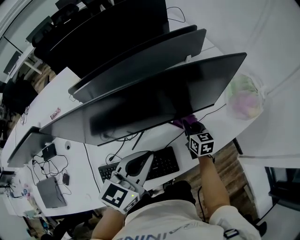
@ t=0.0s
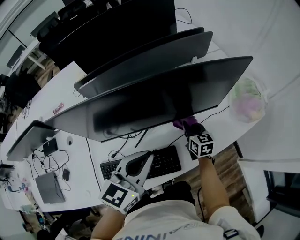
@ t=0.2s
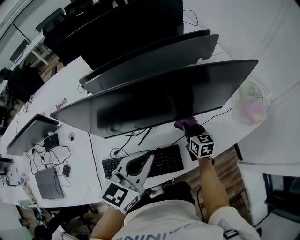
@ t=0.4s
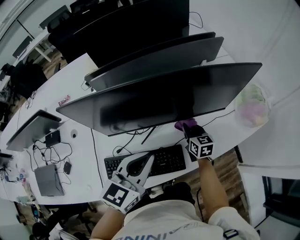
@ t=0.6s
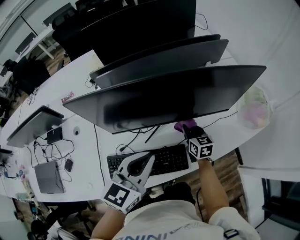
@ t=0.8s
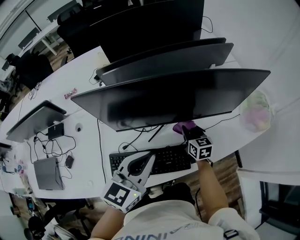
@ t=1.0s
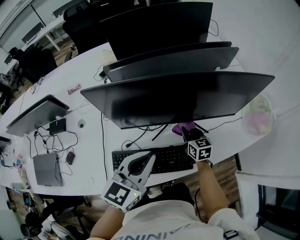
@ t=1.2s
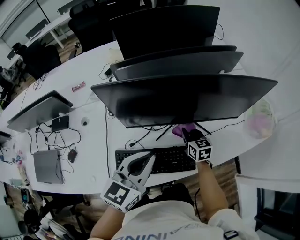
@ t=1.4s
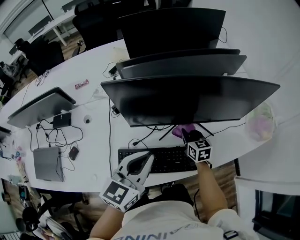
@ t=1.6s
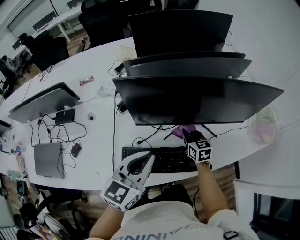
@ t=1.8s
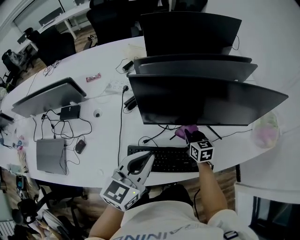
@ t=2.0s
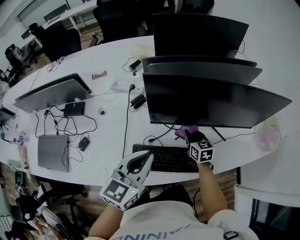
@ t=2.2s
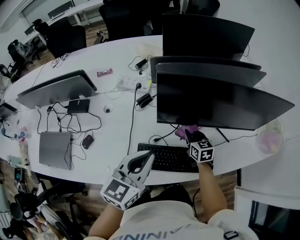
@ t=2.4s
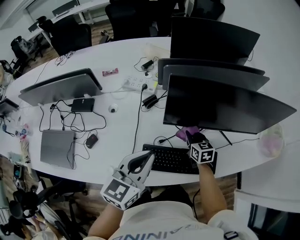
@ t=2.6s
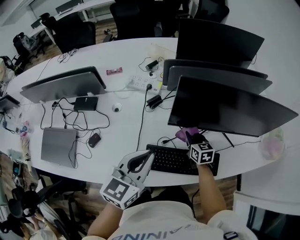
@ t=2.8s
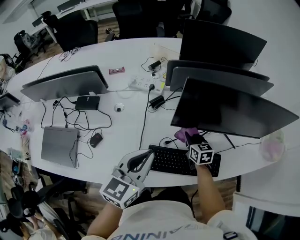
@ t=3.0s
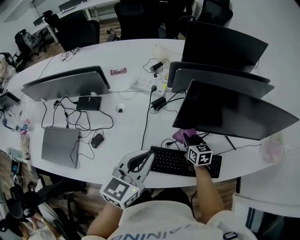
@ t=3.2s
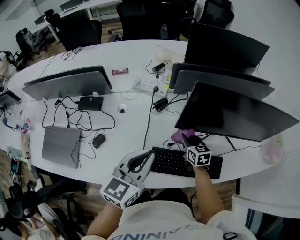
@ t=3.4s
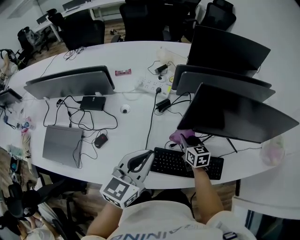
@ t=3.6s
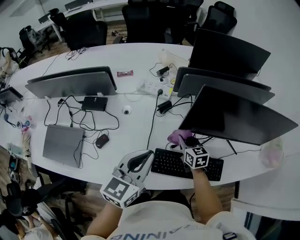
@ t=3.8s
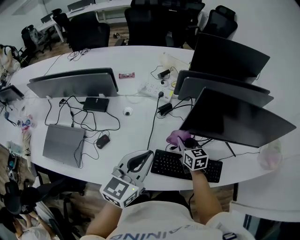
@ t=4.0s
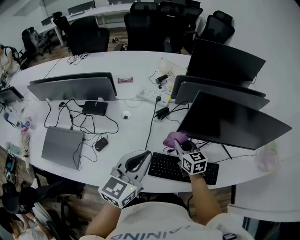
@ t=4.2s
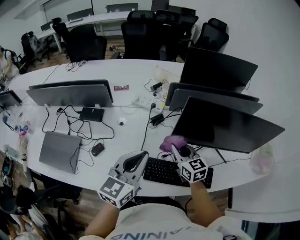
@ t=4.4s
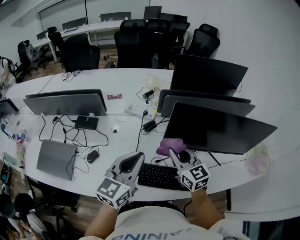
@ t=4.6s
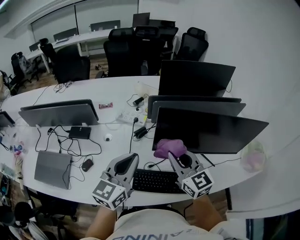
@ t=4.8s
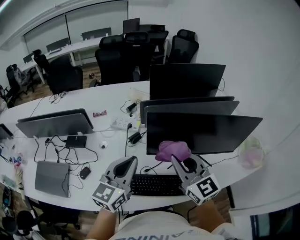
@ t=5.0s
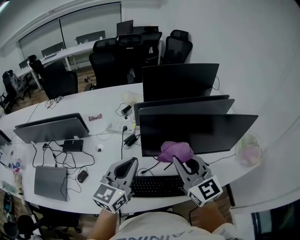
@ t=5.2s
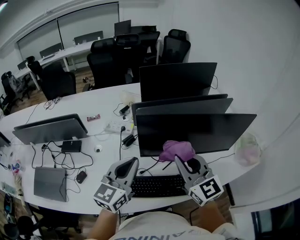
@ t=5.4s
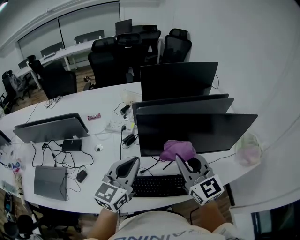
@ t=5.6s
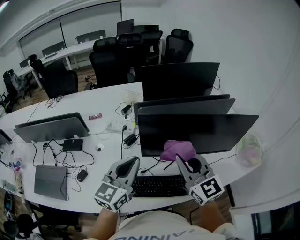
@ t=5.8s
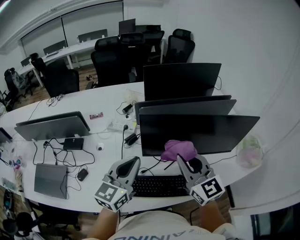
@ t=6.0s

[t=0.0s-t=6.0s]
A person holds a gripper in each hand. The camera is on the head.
t=0.0s to t=1.6s: The left gripper shifts some 15 cm to the left and backward. The right gripper moves to the left, about 15 cm.
t=1.6s to t=3.0s: The grippers both shift to the left by roughly 15 cm.
t=3.0s to t=4.4s: The left gripper changes place by approximately 5 cm. Meanwhile the right gripper moves upward and to the left, some 15 cm.
t=4.4s to t=6.0s: The right gripper is displaced upward and to the right by approximately 20 cm, and turns by some 20 degrees. Meanwhile the left gripper travels to the right by roughly 10 cm.

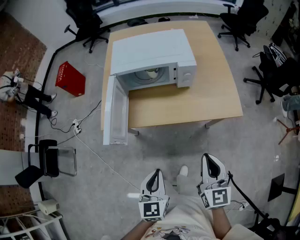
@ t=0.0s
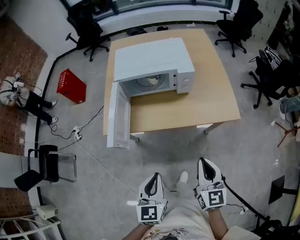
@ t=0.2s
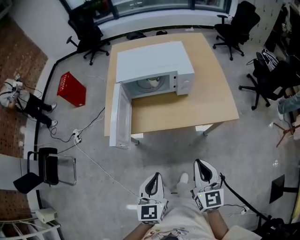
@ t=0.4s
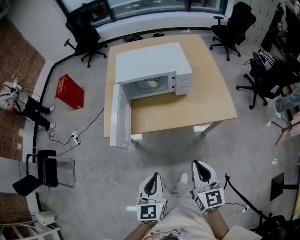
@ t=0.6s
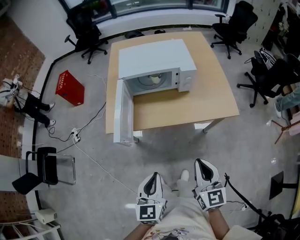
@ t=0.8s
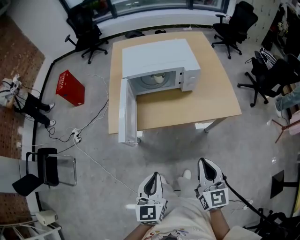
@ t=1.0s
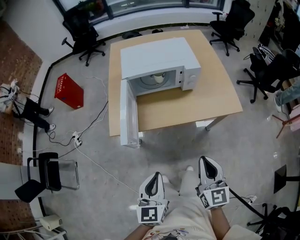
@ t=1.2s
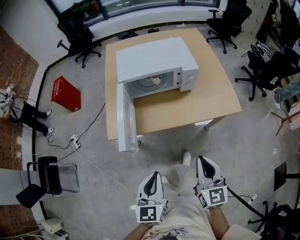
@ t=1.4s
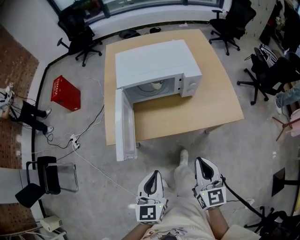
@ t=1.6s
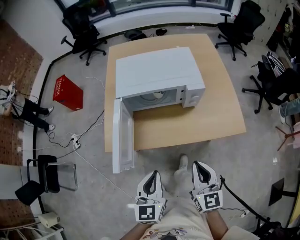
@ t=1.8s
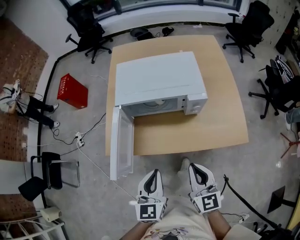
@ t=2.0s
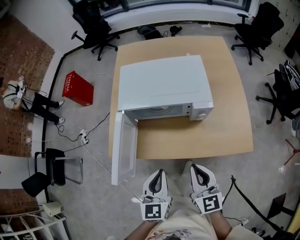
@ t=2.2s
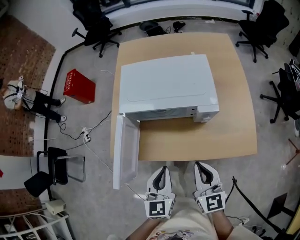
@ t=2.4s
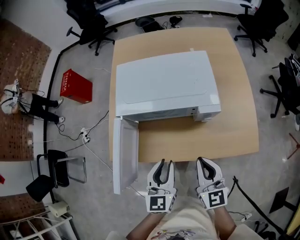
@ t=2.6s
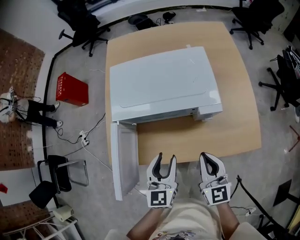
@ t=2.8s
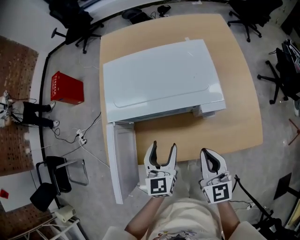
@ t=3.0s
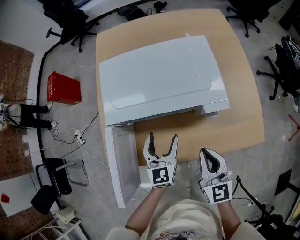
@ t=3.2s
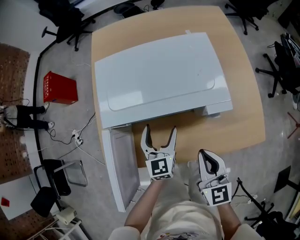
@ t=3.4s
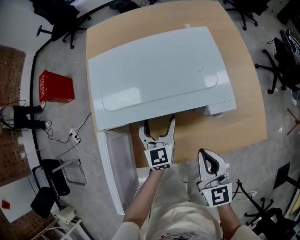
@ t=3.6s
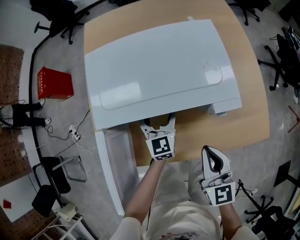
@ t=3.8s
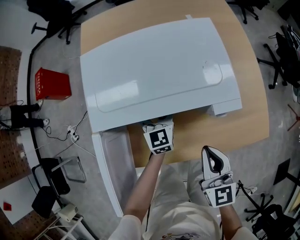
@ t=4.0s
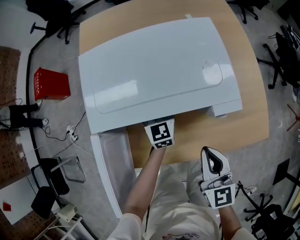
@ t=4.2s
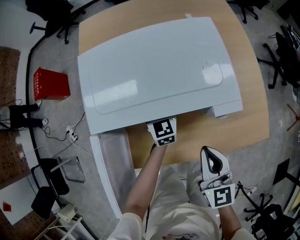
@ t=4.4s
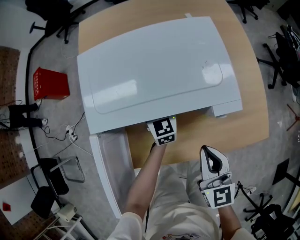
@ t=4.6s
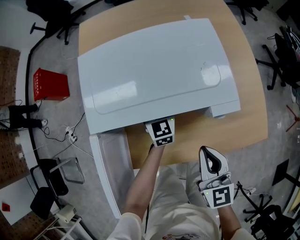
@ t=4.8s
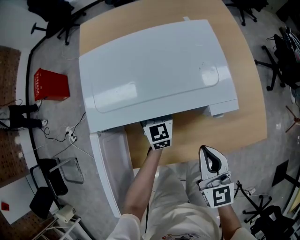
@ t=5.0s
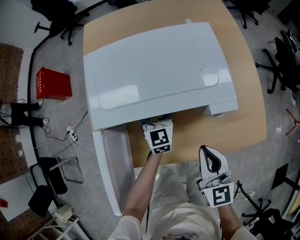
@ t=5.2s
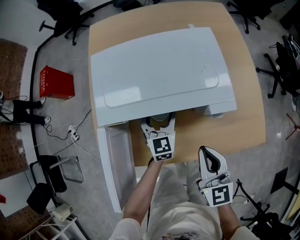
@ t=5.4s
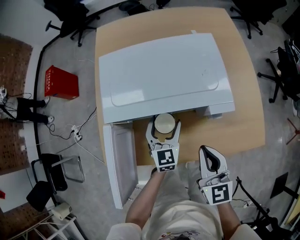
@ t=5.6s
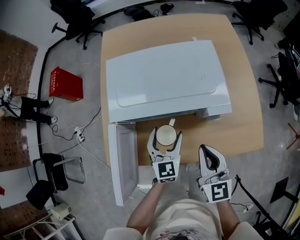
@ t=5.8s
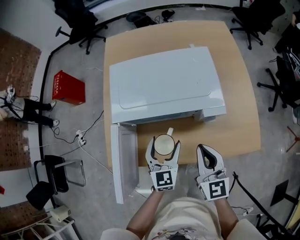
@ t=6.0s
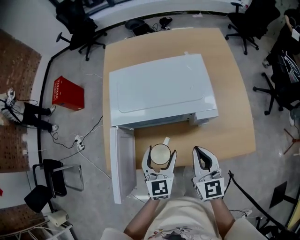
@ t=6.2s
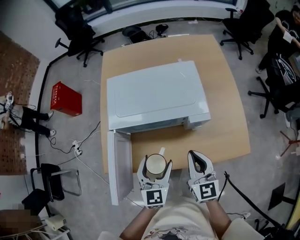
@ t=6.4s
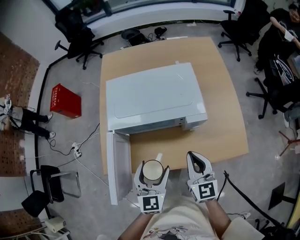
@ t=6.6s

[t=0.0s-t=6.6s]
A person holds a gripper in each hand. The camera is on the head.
t=0.0s to t=1.6s: Both grippers move to the left, about 10 cm.
t=1.6s to t=3.2s: Both grippers move forward, some 30 cm. The left gripper opens.
t=3.2s to t=5.0s: The left gripper goes about 15 cm forward and downward.
t=5.0s to t=6.6s: The left gripper moves backward and upward, approximately 30 cm; the right gripper heads upward, covering roughly 5 cm.

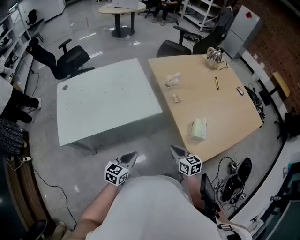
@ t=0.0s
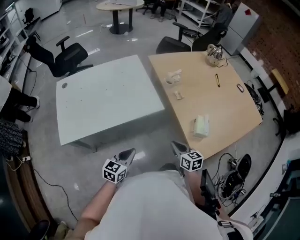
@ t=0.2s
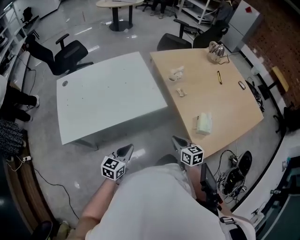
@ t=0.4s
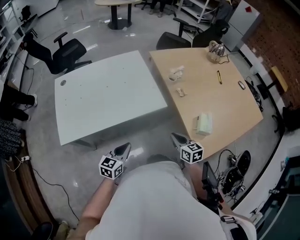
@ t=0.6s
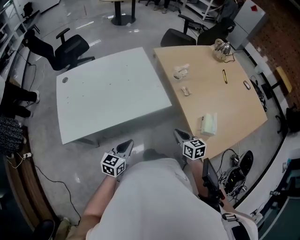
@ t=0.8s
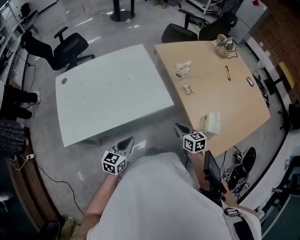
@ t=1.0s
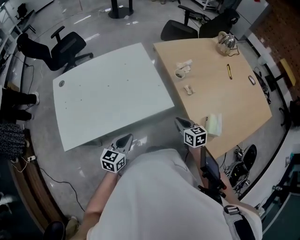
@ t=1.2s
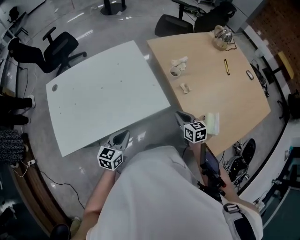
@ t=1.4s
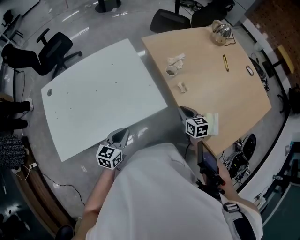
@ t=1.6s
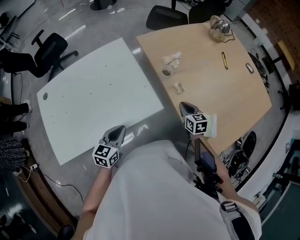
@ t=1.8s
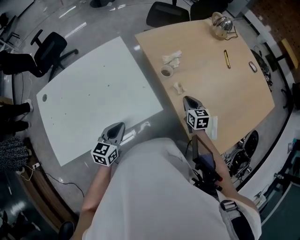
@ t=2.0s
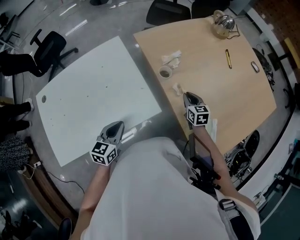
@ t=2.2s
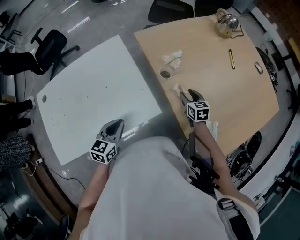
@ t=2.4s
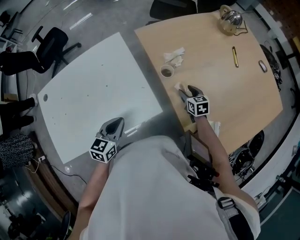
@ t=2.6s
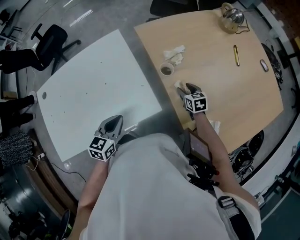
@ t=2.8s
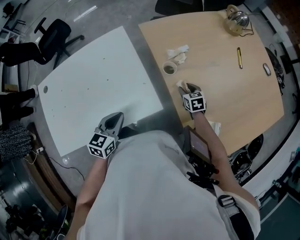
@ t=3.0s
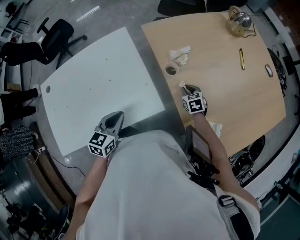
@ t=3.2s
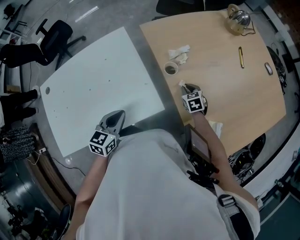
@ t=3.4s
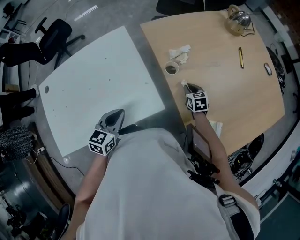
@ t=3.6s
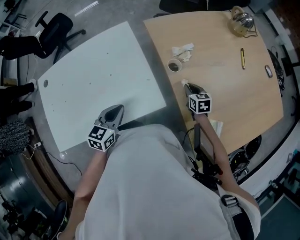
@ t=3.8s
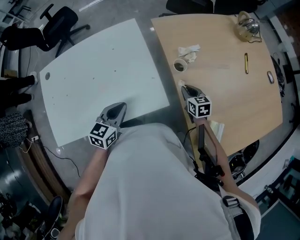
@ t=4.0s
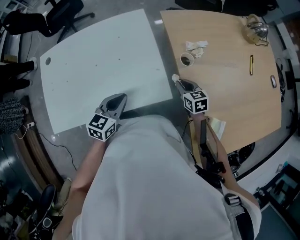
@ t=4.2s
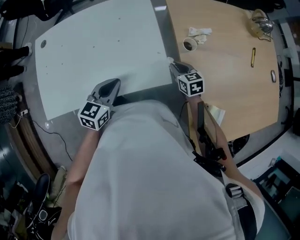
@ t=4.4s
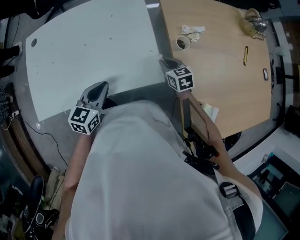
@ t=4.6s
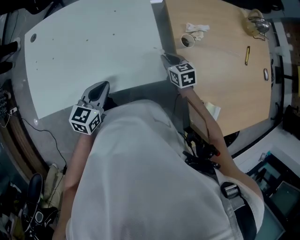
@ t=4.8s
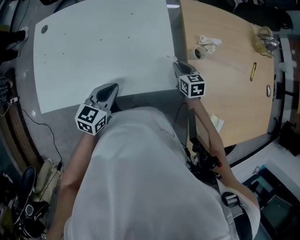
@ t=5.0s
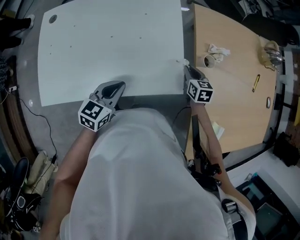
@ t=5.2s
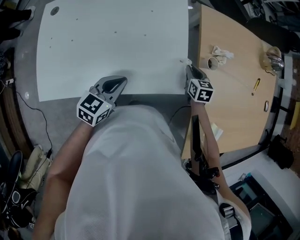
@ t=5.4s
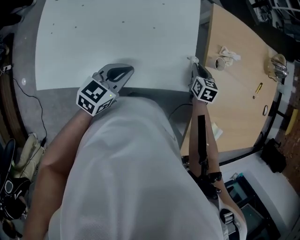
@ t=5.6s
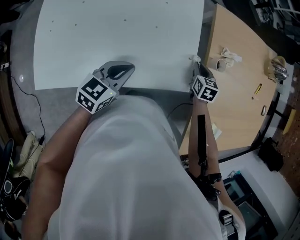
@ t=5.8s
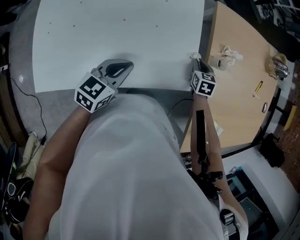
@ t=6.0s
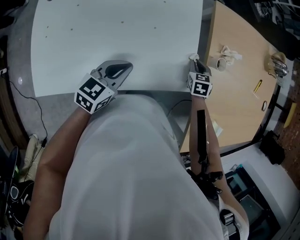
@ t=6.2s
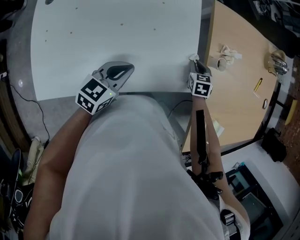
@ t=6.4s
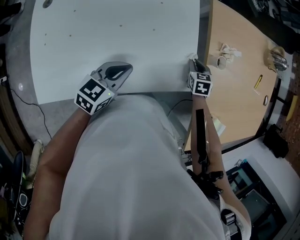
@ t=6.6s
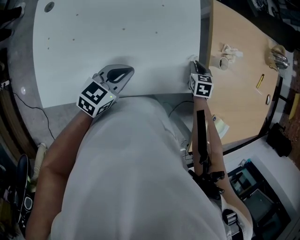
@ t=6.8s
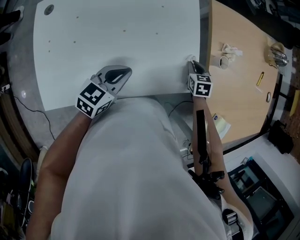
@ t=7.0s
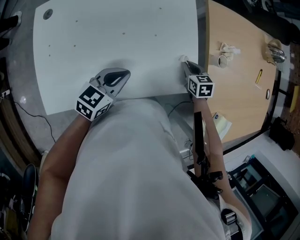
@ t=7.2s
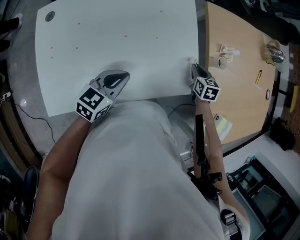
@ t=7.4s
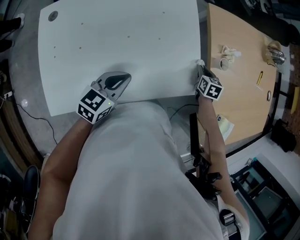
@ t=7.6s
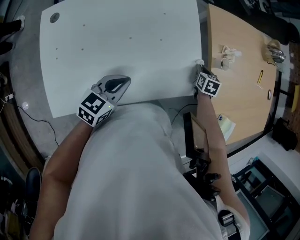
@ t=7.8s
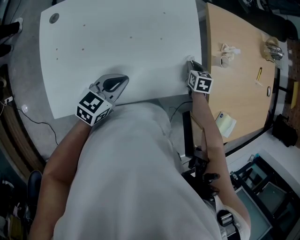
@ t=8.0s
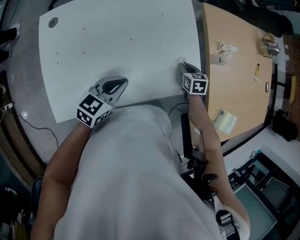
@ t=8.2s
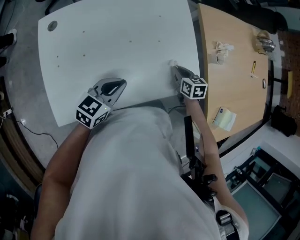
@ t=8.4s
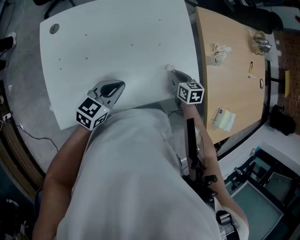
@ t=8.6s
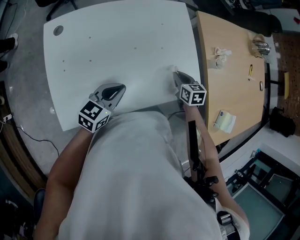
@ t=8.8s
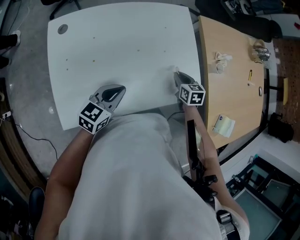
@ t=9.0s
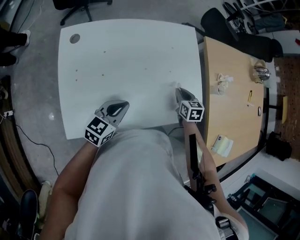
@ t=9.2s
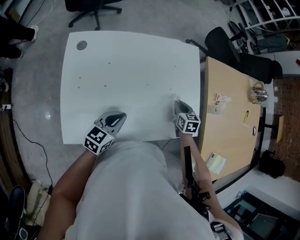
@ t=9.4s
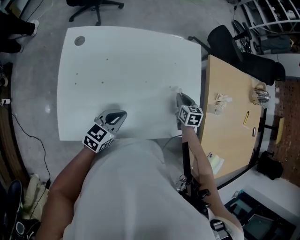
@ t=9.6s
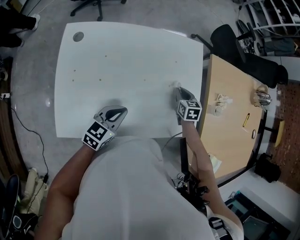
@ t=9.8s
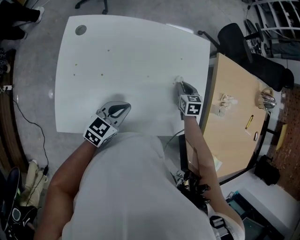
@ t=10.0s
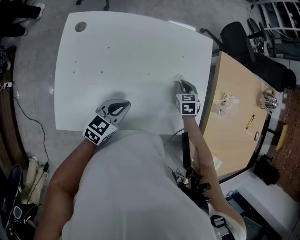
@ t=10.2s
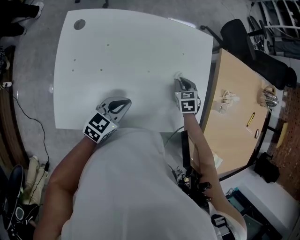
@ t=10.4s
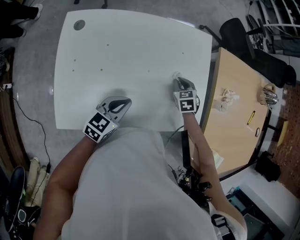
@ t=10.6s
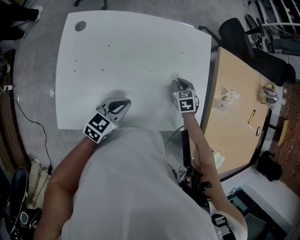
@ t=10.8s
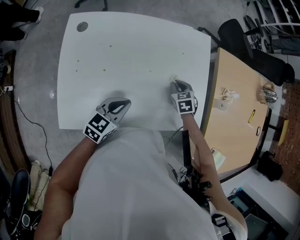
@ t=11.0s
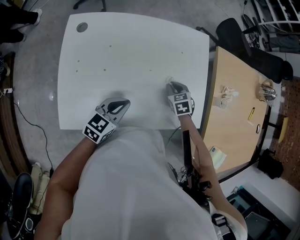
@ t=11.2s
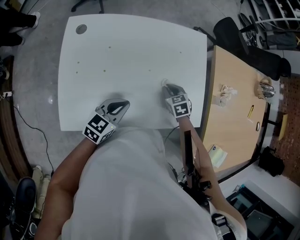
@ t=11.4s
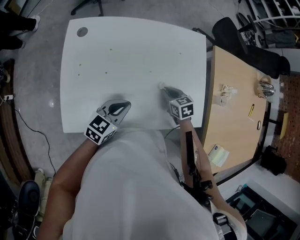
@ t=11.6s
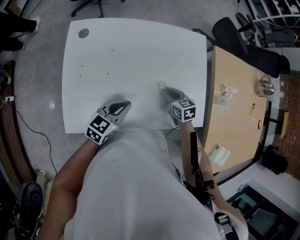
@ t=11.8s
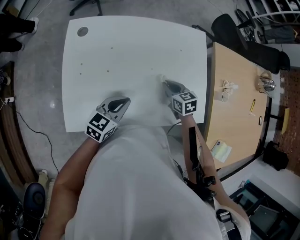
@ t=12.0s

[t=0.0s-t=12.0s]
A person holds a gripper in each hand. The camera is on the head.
t=0.0s to t=1.6s: The right gripper goes about 25 cm forward. Meanwhile the left gripper heads forward and to the left, covering roughly 20 cm.
t=1.6s to t=3.0s: The left gripper travels forward by approximately 10 cm. The right gripper heads forward and downward, covering about 20 cm, and opens.
t=3.0s to t=4.4s: The left gripper shifts about 5 cm to the left. Meanwhile the right gripper shifts about 15 cm to the left, and closes.
t=4.4s to t=6.0s: The right gripper moves forward, about 5 cm, and rotates roughly 20 degrees. Meanwhile the left gripper is displaced to the left by about 5 cm.
t=6.0s to t=7.6s: The left gripper changes place by about 5 cm.
t=7.6s to t=9.0s: The right gripper travels to the left and backward by about 15 cm; the left gripper is displaced to the left by approximately 5 cm.
t=9.0s to t=10.4s: The right gripper travels forward and to the left by some 10 cm, and swivels about 30 degrees.
t=10.4s to t=12.0s: The right gripper is displaced backward and to the left by some 10 cm, and rotates roughly 30 degrees.
